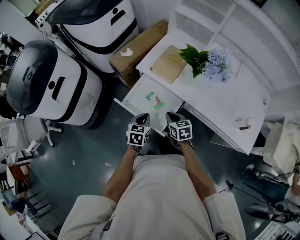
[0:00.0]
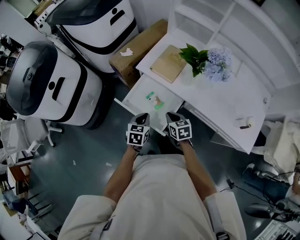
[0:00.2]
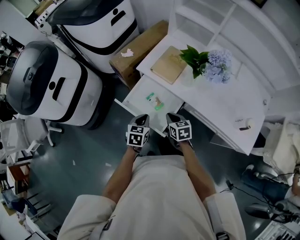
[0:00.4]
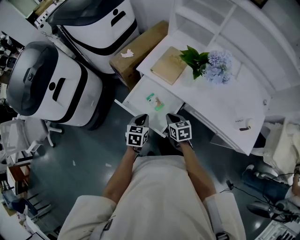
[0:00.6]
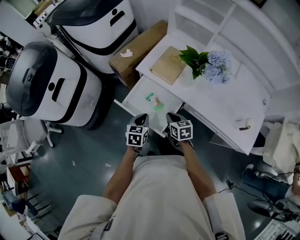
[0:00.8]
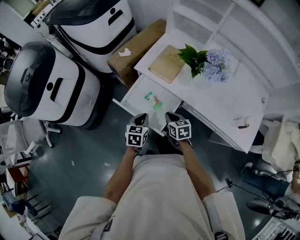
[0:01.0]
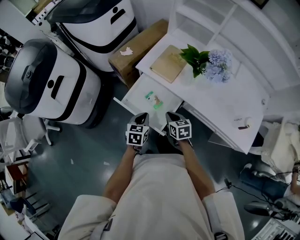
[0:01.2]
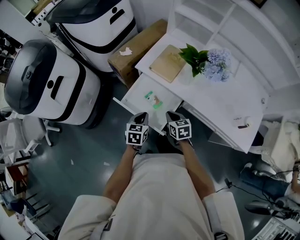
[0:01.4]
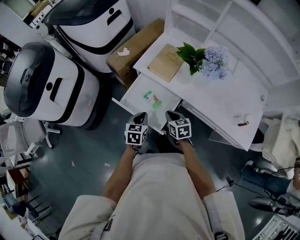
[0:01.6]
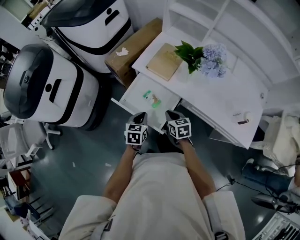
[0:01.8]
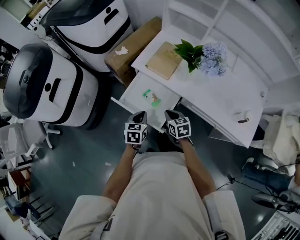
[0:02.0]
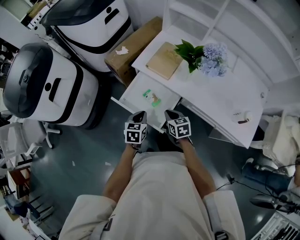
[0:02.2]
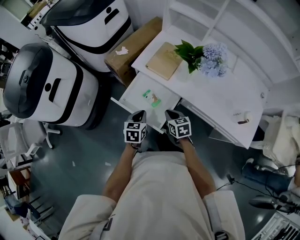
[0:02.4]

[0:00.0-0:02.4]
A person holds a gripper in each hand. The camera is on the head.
0:00.0 to 0:02.4: The two grippers keep their place.

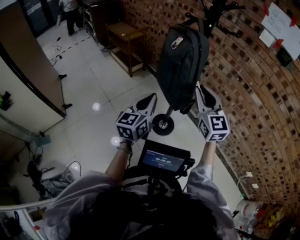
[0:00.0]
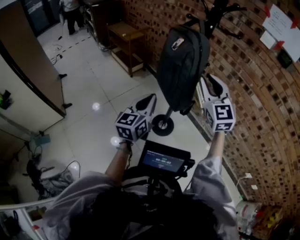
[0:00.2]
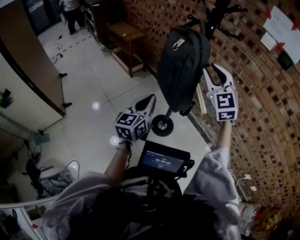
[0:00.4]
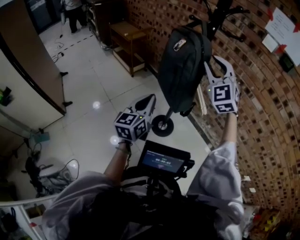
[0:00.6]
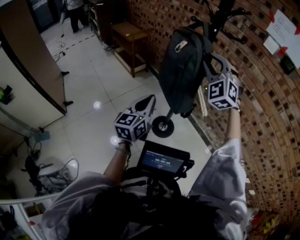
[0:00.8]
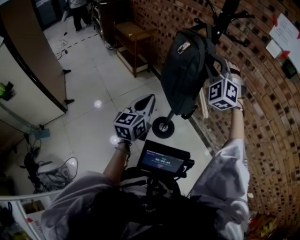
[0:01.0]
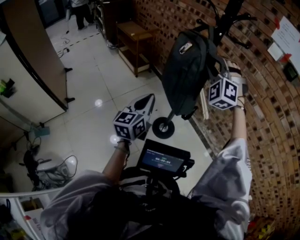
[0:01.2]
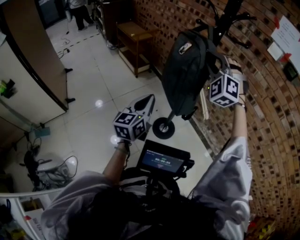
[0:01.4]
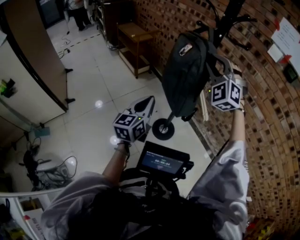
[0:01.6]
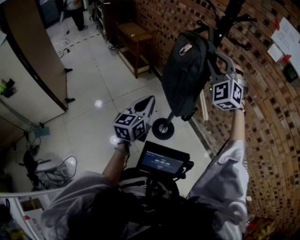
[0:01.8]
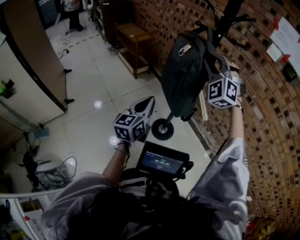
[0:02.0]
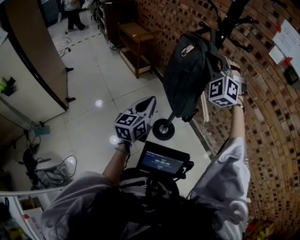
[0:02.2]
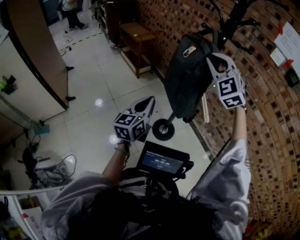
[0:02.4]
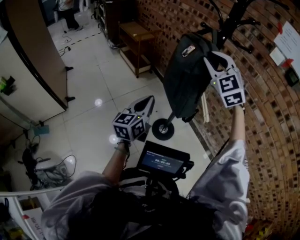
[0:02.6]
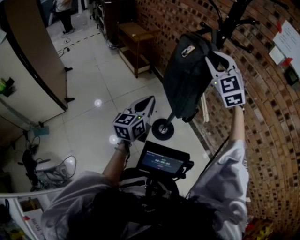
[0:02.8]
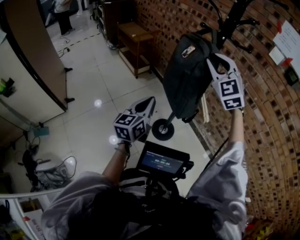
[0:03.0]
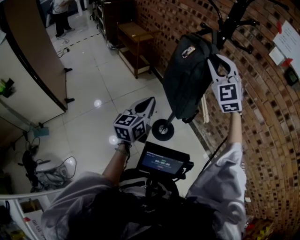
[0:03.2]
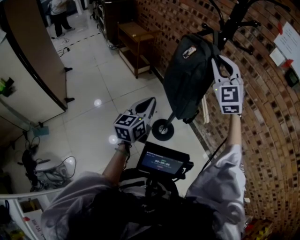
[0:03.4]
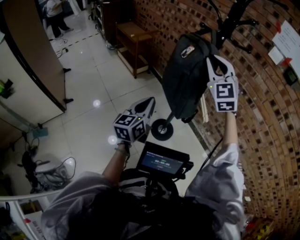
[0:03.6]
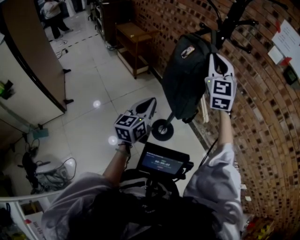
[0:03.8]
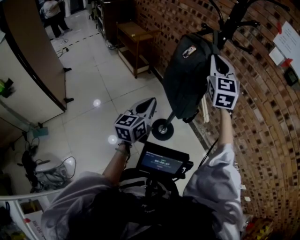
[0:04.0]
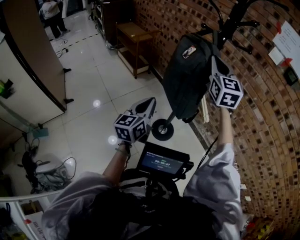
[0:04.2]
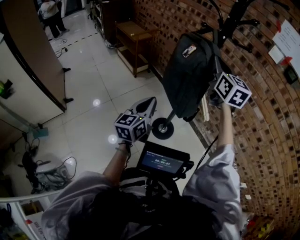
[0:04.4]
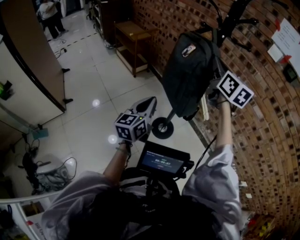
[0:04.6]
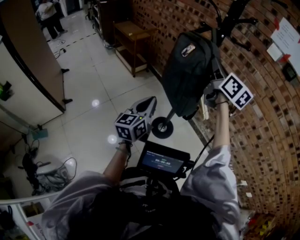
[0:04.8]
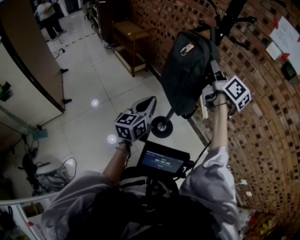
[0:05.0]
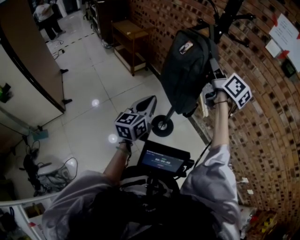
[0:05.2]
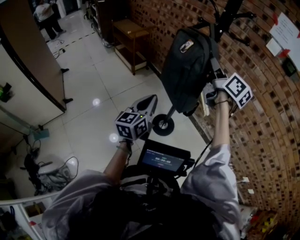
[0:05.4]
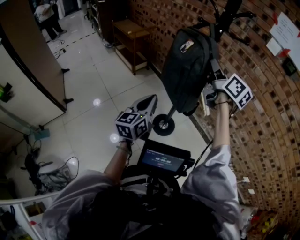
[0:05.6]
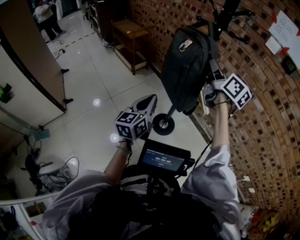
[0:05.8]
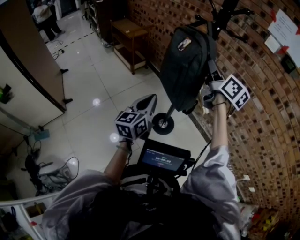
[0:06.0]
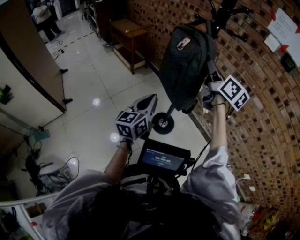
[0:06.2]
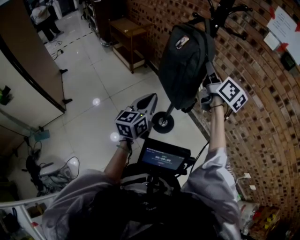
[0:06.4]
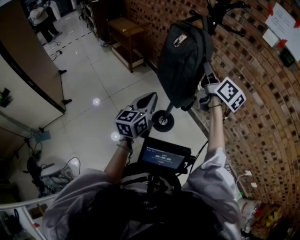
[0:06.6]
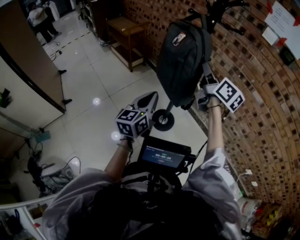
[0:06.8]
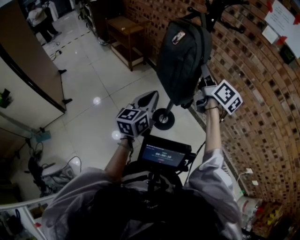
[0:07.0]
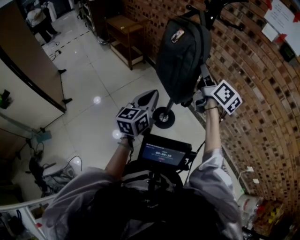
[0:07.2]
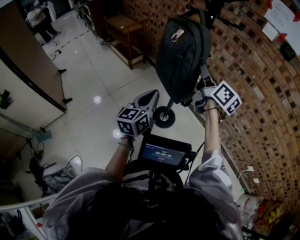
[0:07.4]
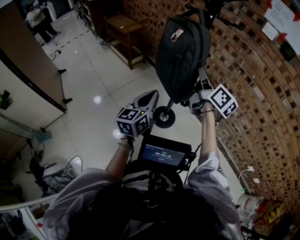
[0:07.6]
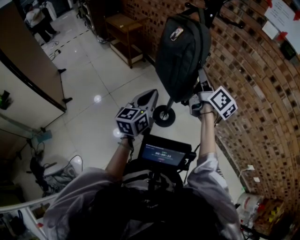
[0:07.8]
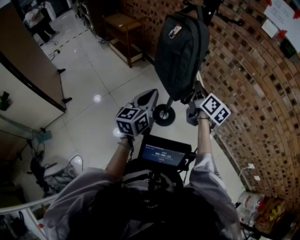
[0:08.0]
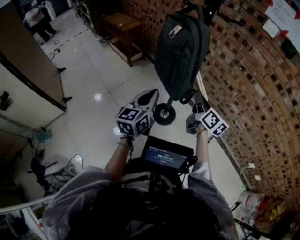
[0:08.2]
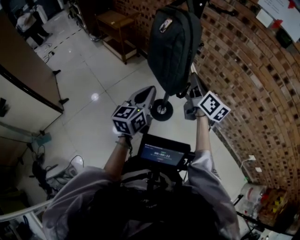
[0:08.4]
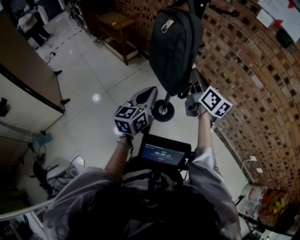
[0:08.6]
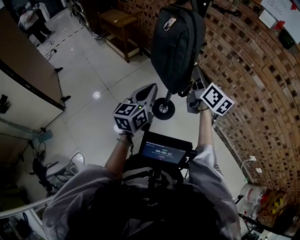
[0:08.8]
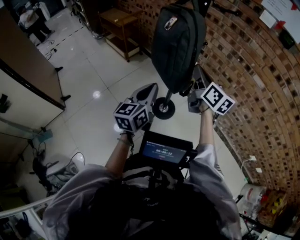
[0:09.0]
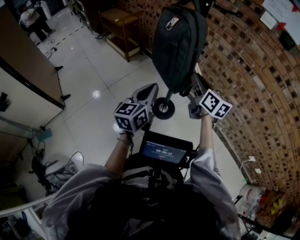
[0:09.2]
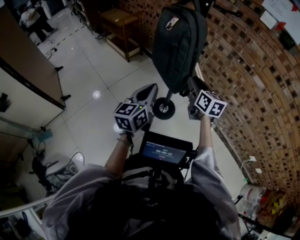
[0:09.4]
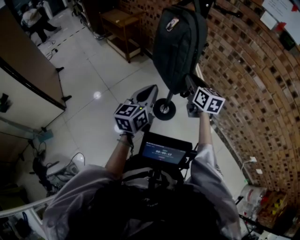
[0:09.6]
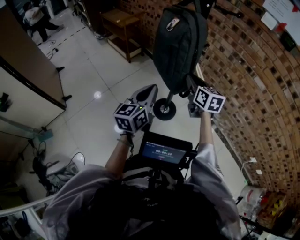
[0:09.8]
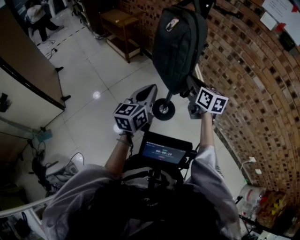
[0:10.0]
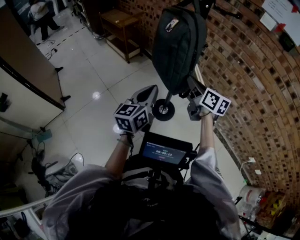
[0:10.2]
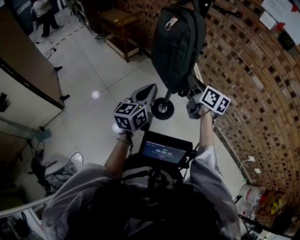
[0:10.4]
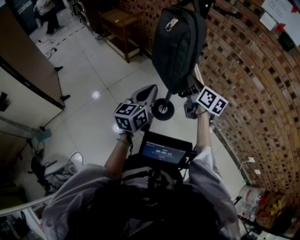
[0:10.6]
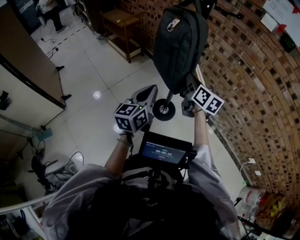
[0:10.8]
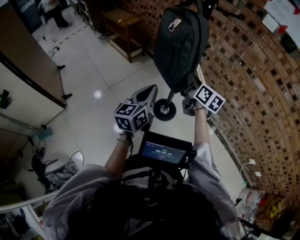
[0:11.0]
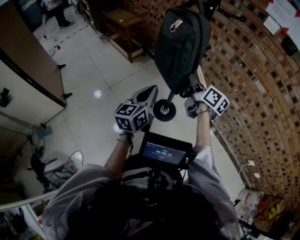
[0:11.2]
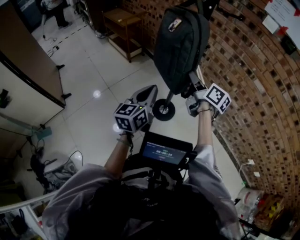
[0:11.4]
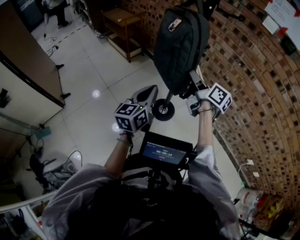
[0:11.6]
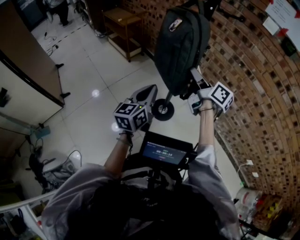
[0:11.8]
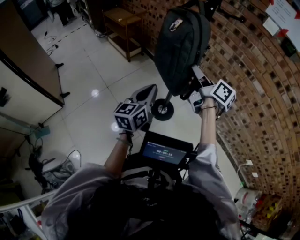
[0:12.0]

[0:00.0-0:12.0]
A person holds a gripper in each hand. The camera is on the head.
0:00.0 to 0:01.6: The right gripper goes some 15 cm forward and upward, and twists some 60 degrees counterclockwise, seen from behind.
0:01.6 to 0:03.0: The right gripper turns by roughly 30 degrees.
0:03.0 to 0:04.4: The right gripper rotates around the line of its fingers by approximately 50 degrees, clockwise from behind, and closes.
0:04.4 to 0:06.0: The right gripper changes its angle by about 30 degrees.
0:06.0 to 0:07.6: The right gripper is displaced downward by some 5 cm.
0:09.0 to 0:10.4: The right gripper shifts roughly 5 cm downward, and opens and closes again.
0:10.4 to 0:12.0: The right gripper is displaced upward by roughly 5 cm, and swivels about 20 degrees.

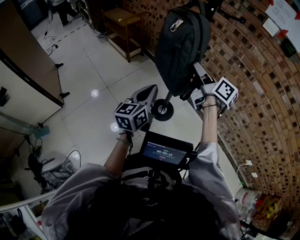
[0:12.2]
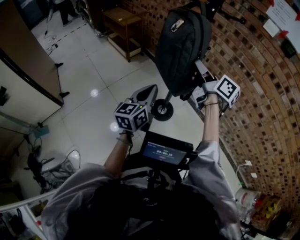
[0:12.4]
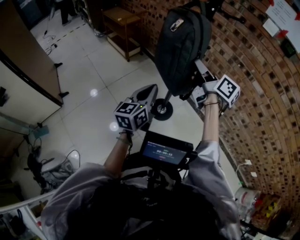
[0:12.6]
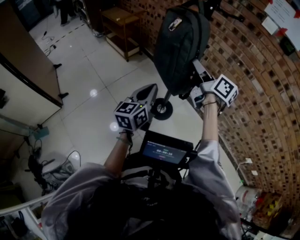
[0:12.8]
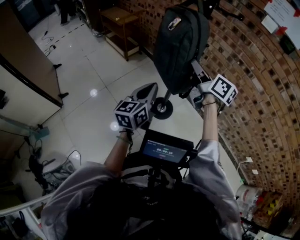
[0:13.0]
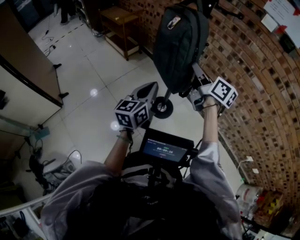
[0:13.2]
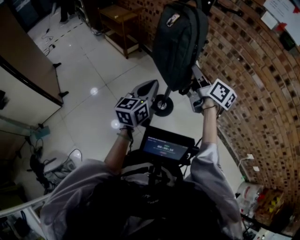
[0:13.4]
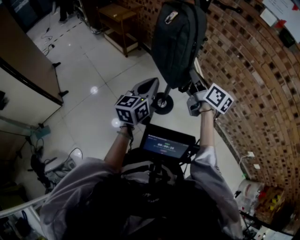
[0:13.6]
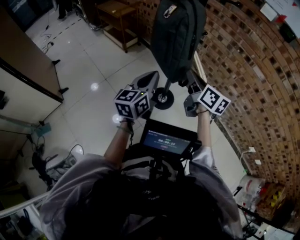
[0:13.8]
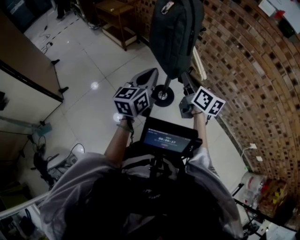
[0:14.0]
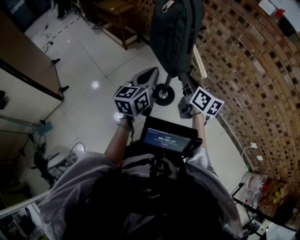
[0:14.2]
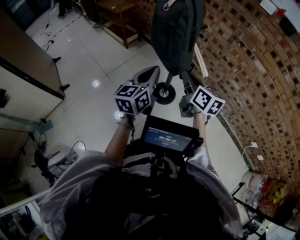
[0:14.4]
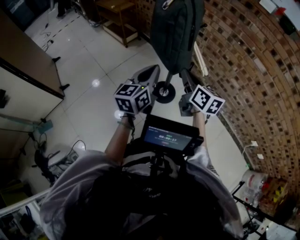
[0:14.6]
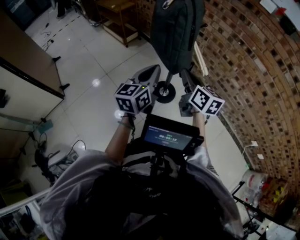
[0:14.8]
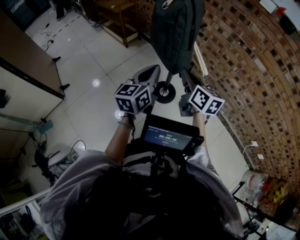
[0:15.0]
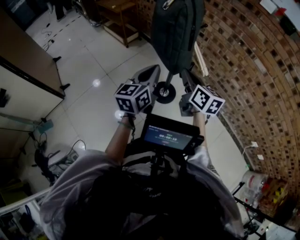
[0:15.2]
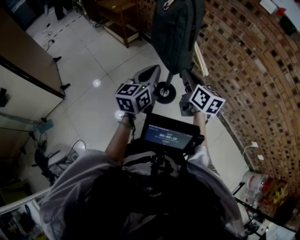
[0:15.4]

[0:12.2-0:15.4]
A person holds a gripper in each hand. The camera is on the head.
0:12.2 to 0:13.8: The right gripper heads downward and backward, covering roughly 10 cm.
0:13.8 to 0:15.4: The grippers move only a little.

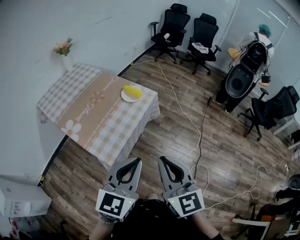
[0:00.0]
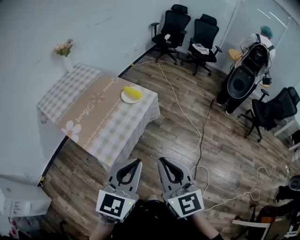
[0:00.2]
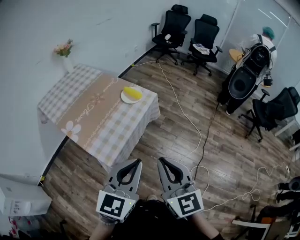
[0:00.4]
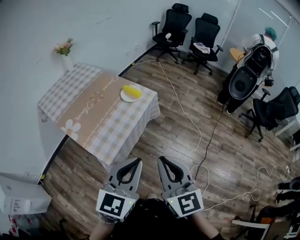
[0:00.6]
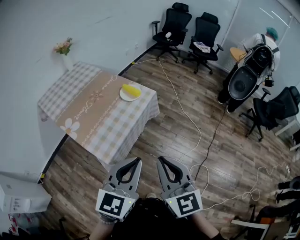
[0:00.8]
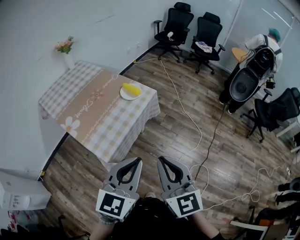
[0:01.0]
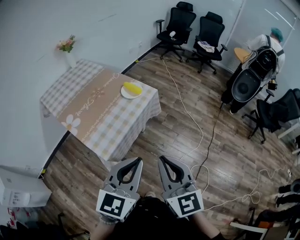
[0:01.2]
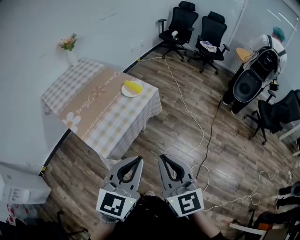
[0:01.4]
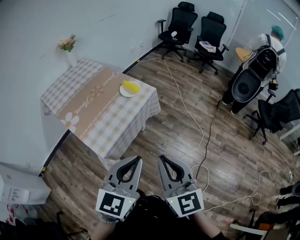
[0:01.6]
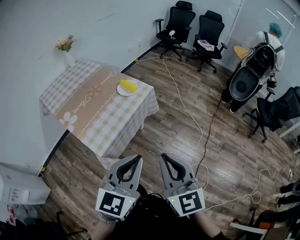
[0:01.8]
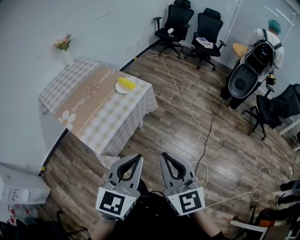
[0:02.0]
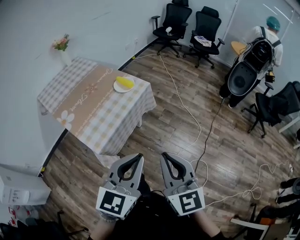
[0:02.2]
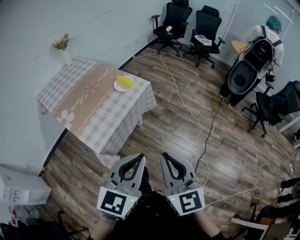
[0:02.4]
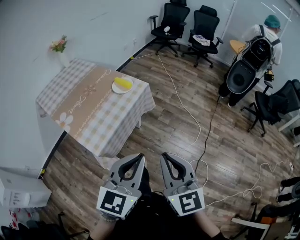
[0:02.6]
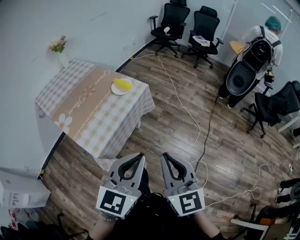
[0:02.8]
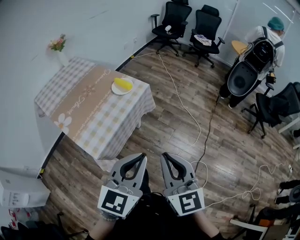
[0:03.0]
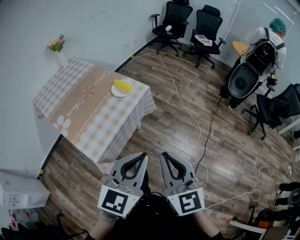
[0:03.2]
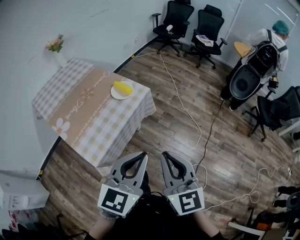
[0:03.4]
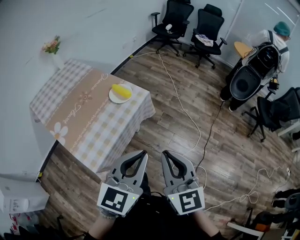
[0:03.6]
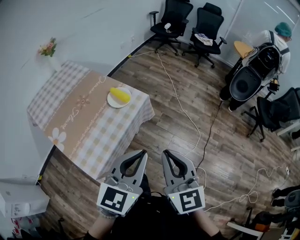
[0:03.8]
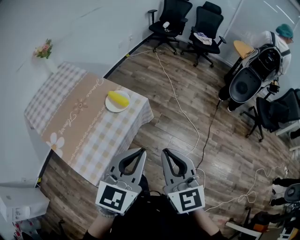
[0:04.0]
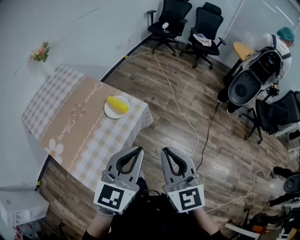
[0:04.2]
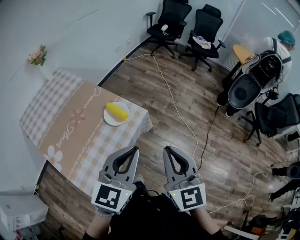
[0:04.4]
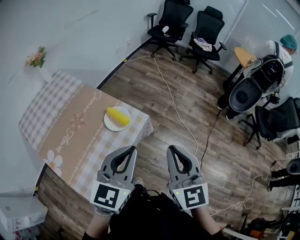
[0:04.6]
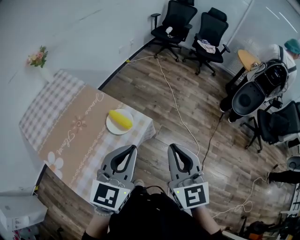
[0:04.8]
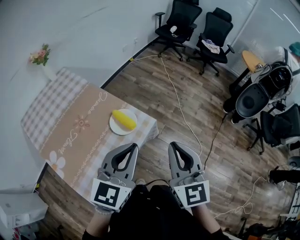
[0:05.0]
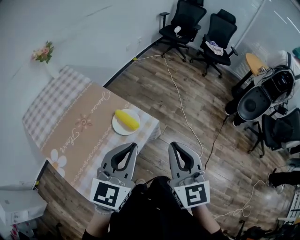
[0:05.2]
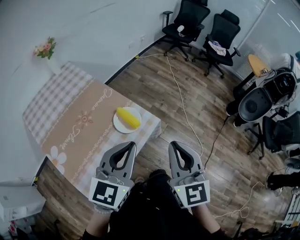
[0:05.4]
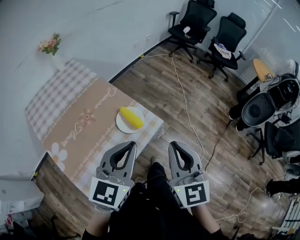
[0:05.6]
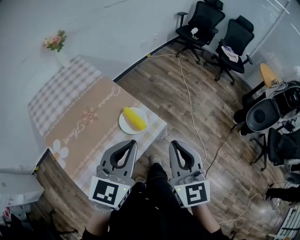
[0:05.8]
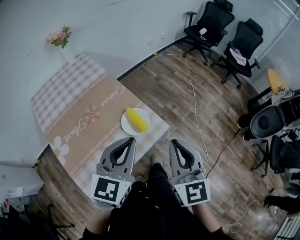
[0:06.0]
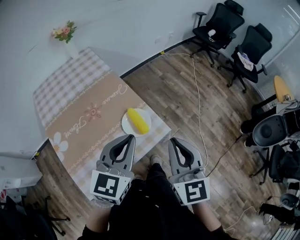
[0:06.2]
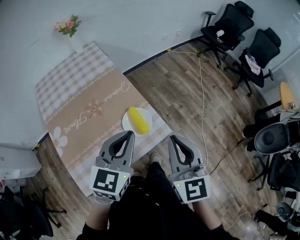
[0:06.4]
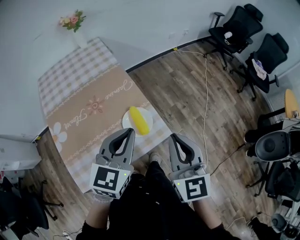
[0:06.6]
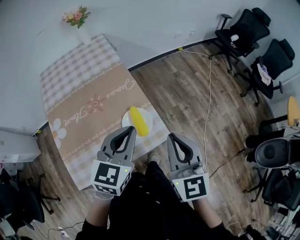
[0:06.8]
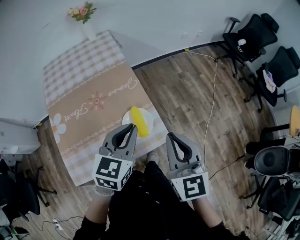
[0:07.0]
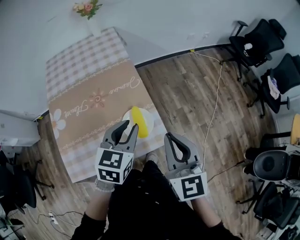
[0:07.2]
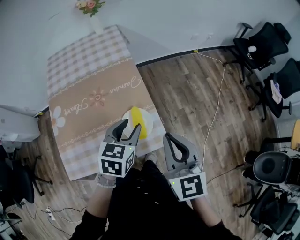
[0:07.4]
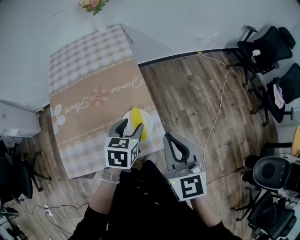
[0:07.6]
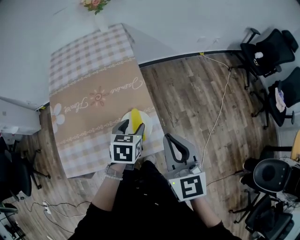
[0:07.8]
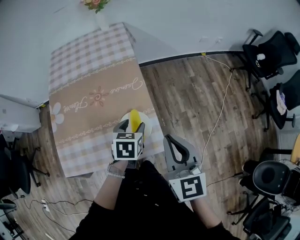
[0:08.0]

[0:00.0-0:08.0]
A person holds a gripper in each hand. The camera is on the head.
0:00.0 to 0:01.6: The grippers both shift to the right by about 5 cm.
0:01.6 to 0:03.2: The right gripper shifts by approximately 5 cm. The left gripper travels to the right by approximately 5 cm.
0:03.2 to 0:04.8: The grippers both shift forward by approximately 30 cm.
0:04.8 to 0:06.4: The right gripper heads forward, covering about 15 cm, and turns by about 20 degrees; the left gripper is displaced forward and to the left by about 15 cm, and rotates roughly 30 degrees.
0:06.4 to 0:08.0: The right gripper shifts some 10 cm forward, and turns by some 20 degrees. Meanwhile the left gripper shifts roughly 25 cm downward and forward, points its fingers some 30 degrees further downward, and opens up.
